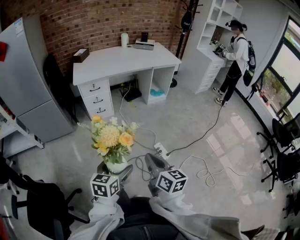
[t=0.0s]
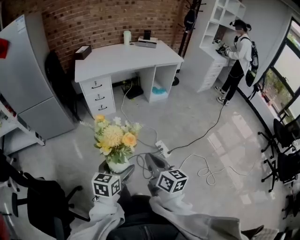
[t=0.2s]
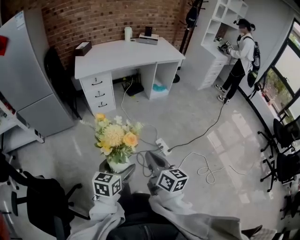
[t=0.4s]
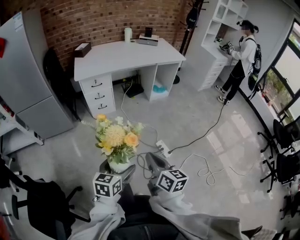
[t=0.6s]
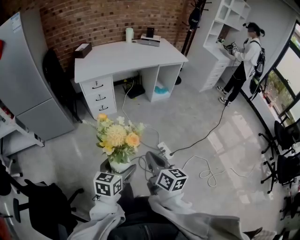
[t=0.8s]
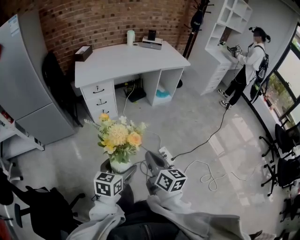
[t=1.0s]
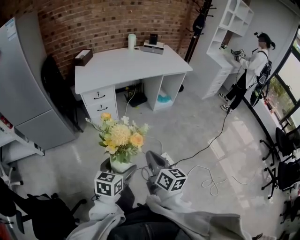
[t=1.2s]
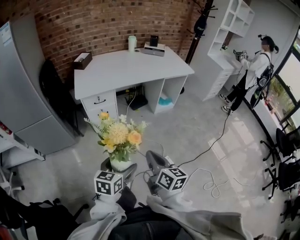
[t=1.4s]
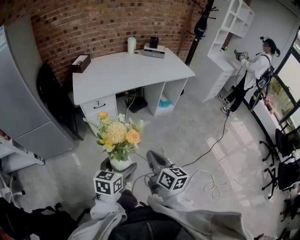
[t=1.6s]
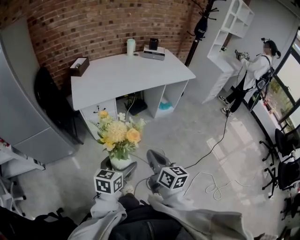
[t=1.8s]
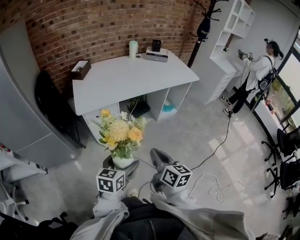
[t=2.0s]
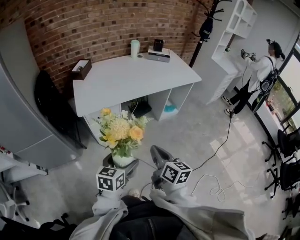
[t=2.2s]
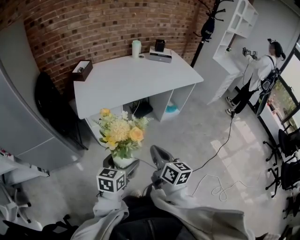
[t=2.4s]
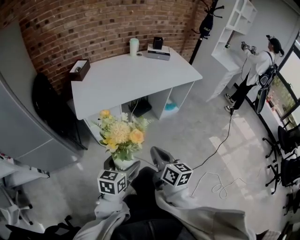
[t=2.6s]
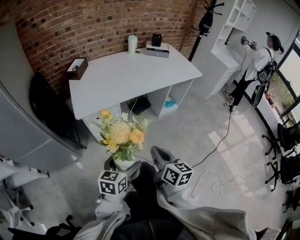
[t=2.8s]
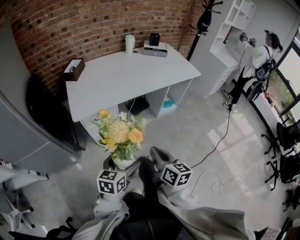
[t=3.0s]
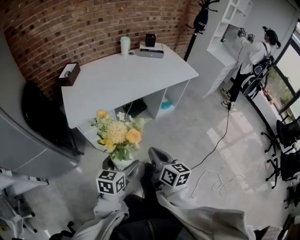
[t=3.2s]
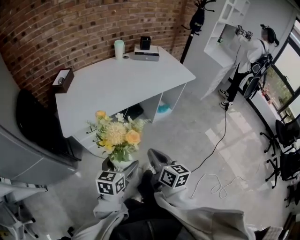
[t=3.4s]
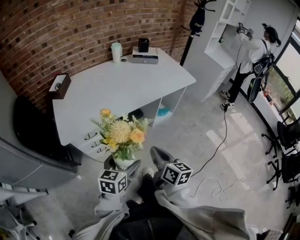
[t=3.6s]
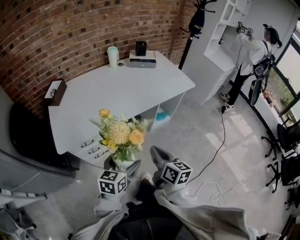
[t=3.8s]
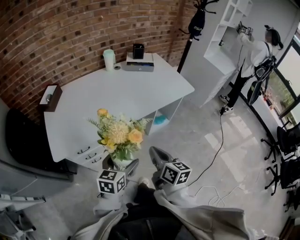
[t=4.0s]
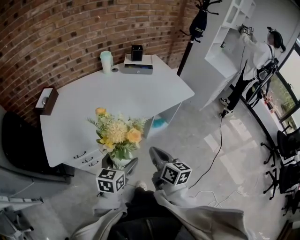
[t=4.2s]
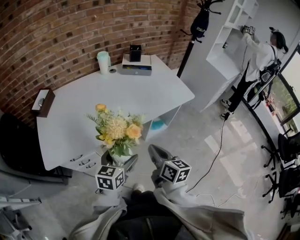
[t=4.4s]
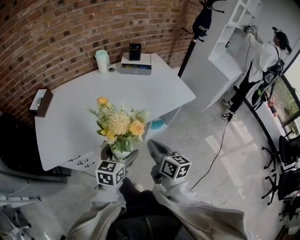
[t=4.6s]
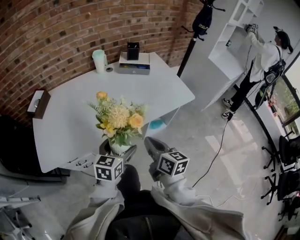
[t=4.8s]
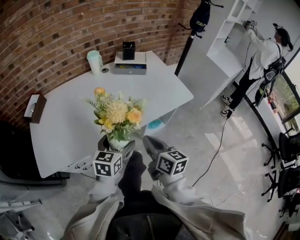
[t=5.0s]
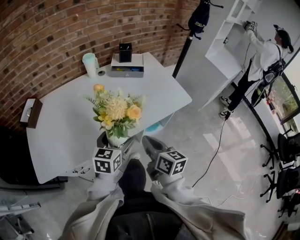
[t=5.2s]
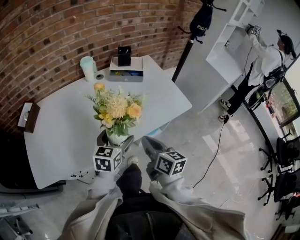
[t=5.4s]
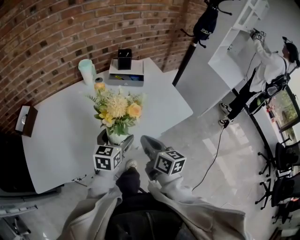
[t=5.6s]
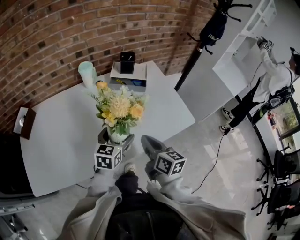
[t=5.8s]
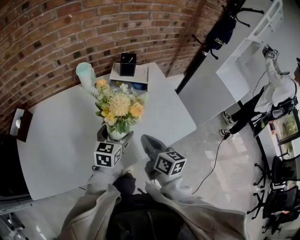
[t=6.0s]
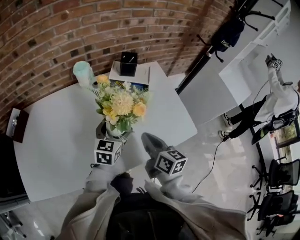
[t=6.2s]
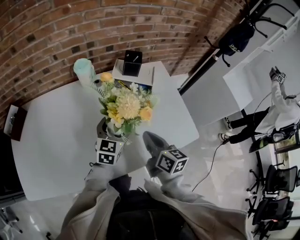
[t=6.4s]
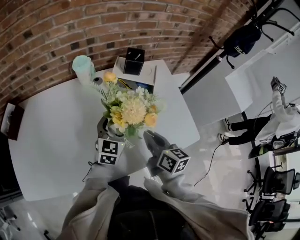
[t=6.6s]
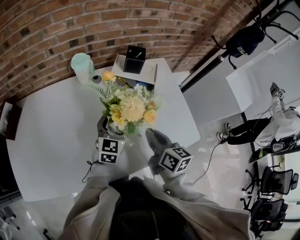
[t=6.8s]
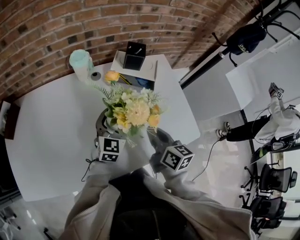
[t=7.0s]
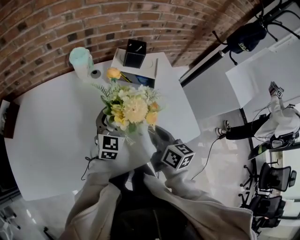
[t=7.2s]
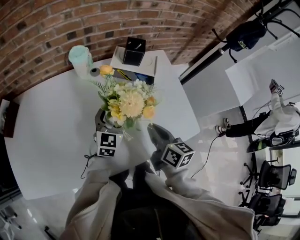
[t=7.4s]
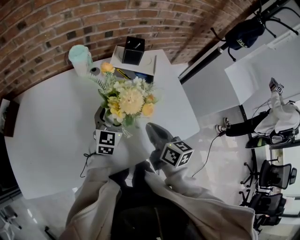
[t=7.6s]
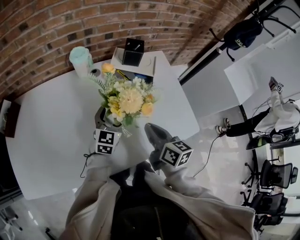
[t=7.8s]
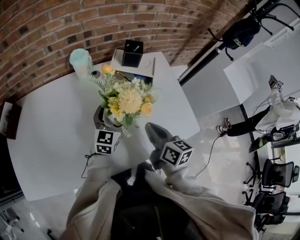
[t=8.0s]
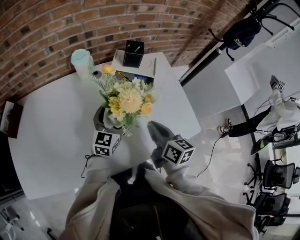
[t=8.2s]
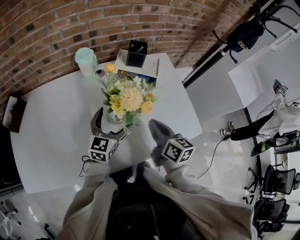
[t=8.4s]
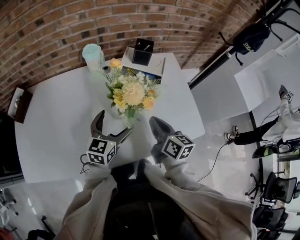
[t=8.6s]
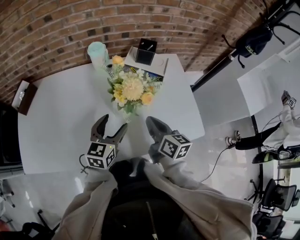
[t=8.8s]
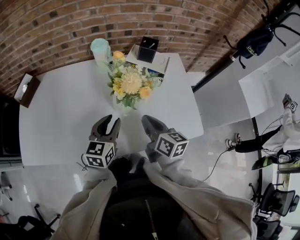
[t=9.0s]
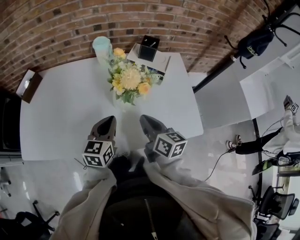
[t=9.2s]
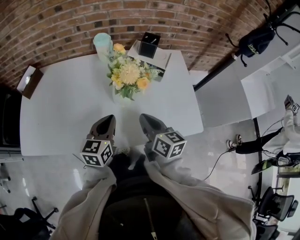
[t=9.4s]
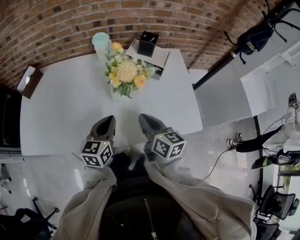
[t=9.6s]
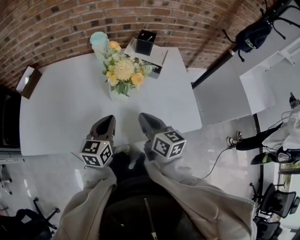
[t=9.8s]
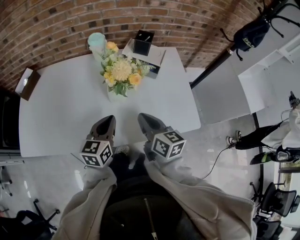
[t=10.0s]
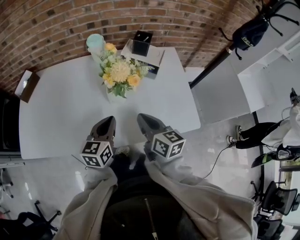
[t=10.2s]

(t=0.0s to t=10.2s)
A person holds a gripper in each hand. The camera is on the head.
t=0.0s - t=1.4s: The left gripper is displaced forward by about 25 cm, while the right gripper shifts roughly 25 cm forward and to the left.
t=1.4s - t=3.0s: The two grippers go some 25 cm forward and to the left.
t=3.0s - t=4.4s: The two grippers travel together, forward, approximately 40 cm.
t=4.4s - t=5.8s: The grippers both shift forward by approximately 30 cm.
t=5.8s - t=7.2s: Both grippers move forward, roughly 15 cm.
t=7.2s - t=8.8s: The left gripper shifts some 10 cm backward and upward.
t=8.8s - t=10.2s: The two grippers go about 5 cm backward. The left gripper closes.

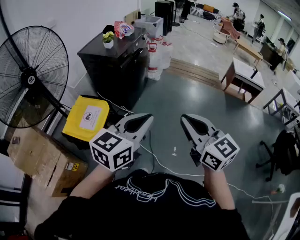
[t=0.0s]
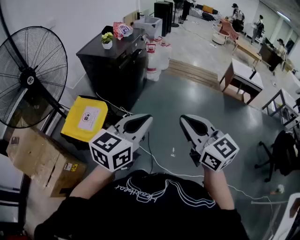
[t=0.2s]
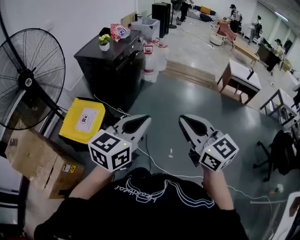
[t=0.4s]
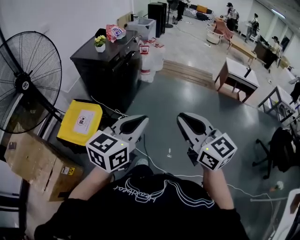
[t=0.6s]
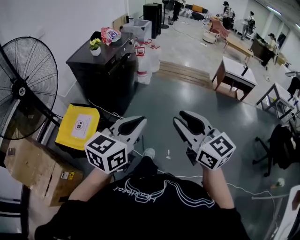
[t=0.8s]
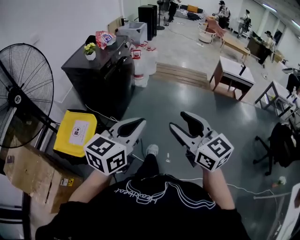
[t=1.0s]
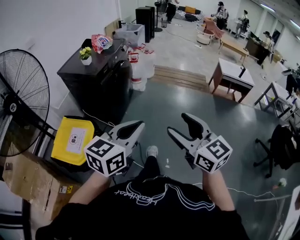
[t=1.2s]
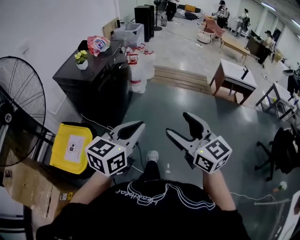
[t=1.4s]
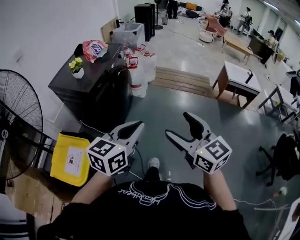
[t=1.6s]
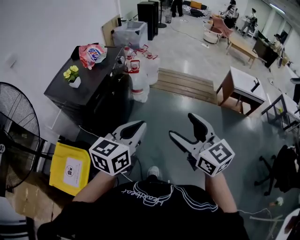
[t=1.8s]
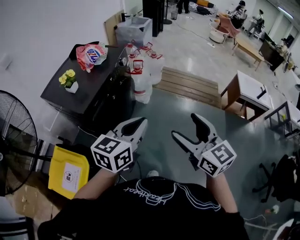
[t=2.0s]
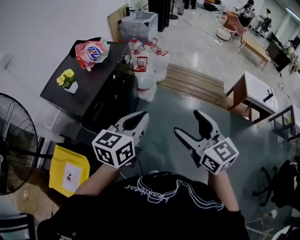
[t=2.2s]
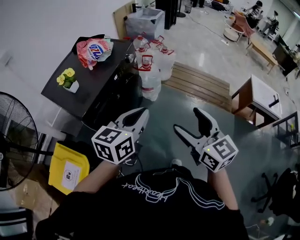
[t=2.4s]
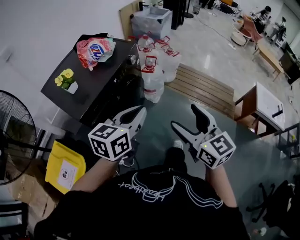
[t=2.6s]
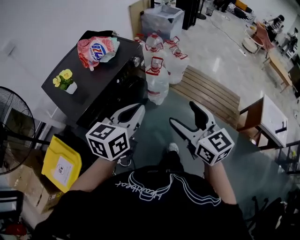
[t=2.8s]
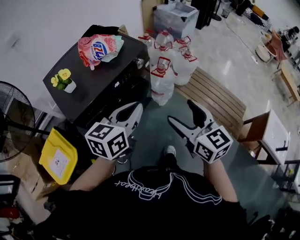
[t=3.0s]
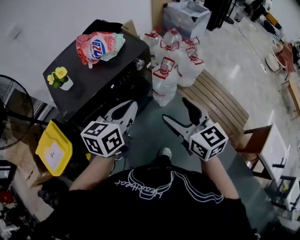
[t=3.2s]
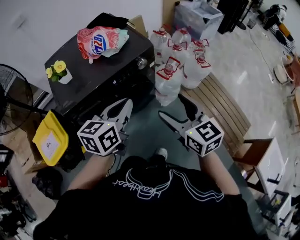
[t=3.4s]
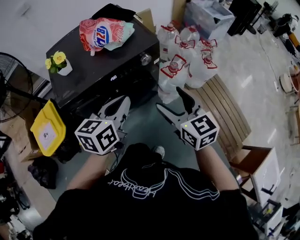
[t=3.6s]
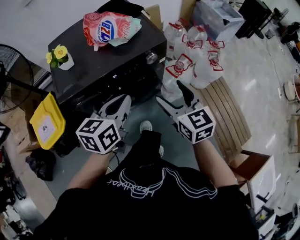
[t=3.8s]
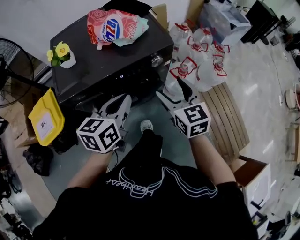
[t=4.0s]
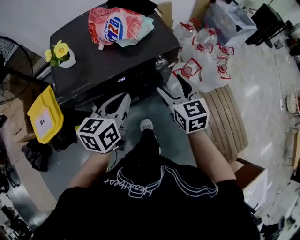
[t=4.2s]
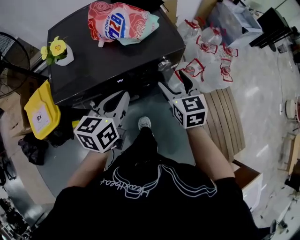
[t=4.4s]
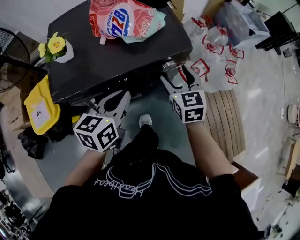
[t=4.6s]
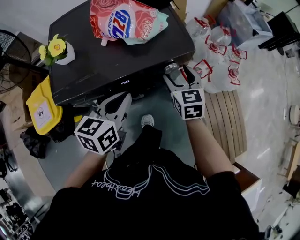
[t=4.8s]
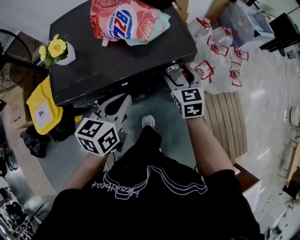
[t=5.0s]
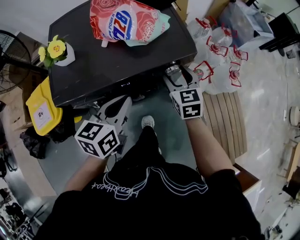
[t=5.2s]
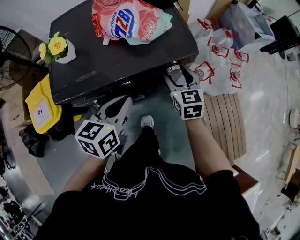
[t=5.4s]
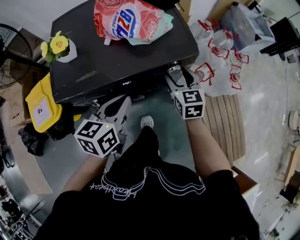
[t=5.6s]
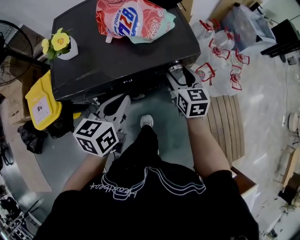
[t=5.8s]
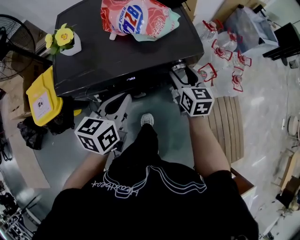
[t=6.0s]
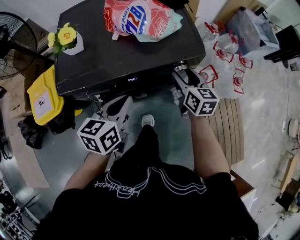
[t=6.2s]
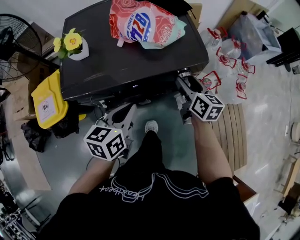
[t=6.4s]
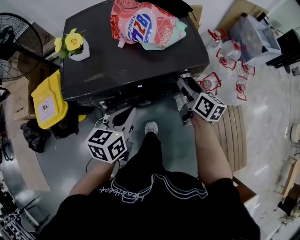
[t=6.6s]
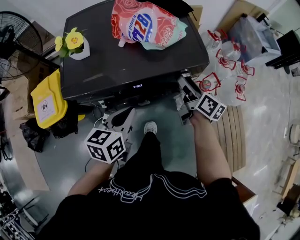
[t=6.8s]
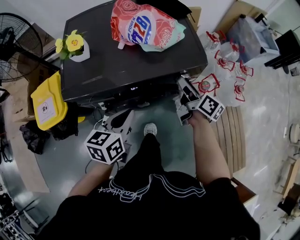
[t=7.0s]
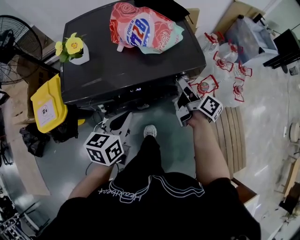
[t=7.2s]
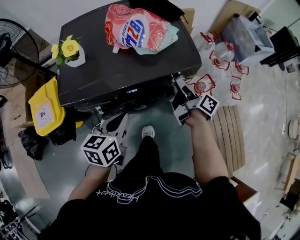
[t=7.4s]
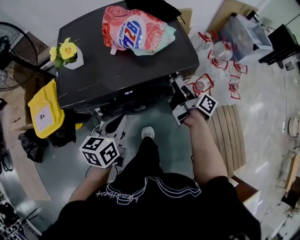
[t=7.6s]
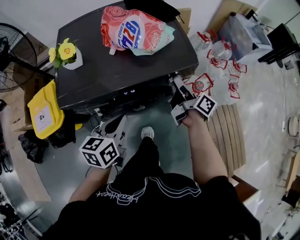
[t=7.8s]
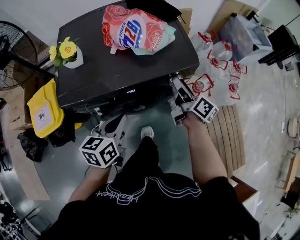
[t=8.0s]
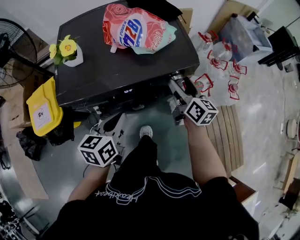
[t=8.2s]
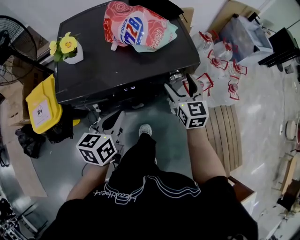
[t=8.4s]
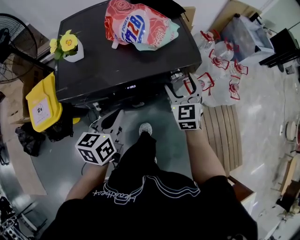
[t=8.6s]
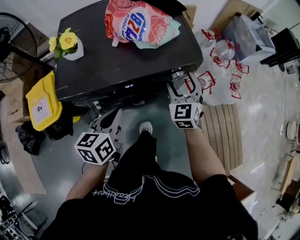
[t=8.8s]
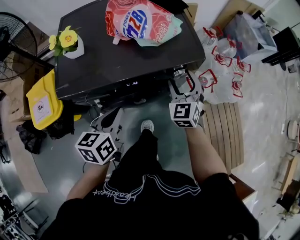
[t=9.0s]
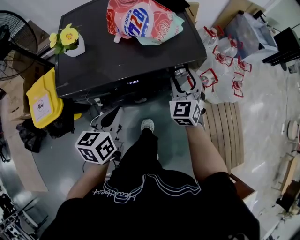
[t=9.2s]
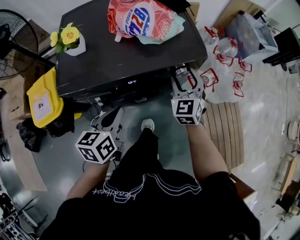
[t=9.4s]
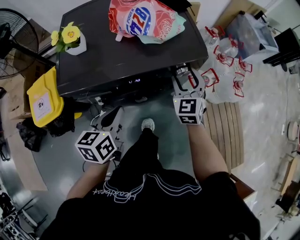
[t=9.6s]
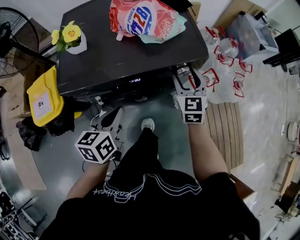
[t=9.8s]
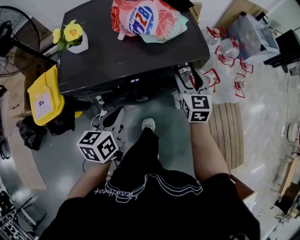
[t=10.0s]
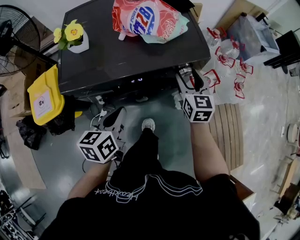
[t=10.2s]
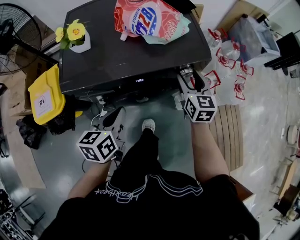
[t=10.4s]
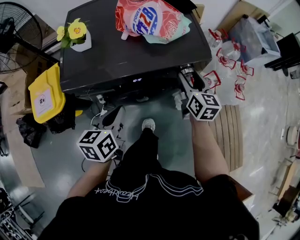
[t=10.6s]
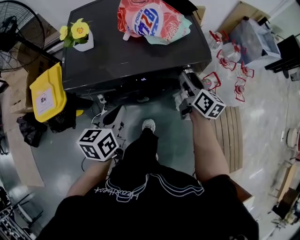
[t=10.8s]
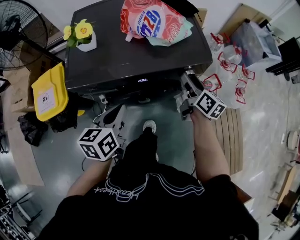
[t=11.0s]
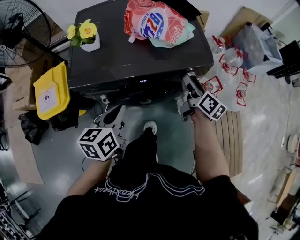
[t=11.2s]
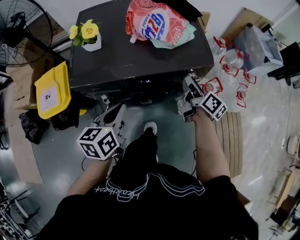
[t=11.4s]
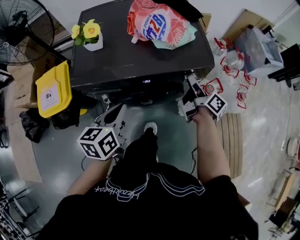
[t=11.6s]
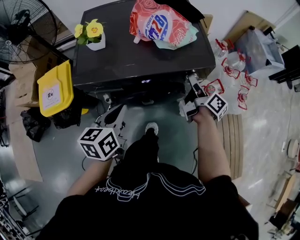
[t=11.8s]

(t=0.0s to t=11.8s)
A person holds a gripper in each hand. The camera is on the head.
t=0.0s - t=1.4s: Both grippers move forward, roughly 15 cm. The right gripper opens its fingers.
t=1.4s - t=3.0s: The two grippers travel together, approximately 60 cm. The right gripper swivels some 20 degrees, while the left gripper turns by roughly 30 degrees.
t=3.0s - t=4.4s: The left gripper moves about 20 cm, and swivels approximately 40 degrees. The right gripper shifts by some 35 cm, and turns by about 30 degrees.
t=4.4s - t=6.0s: The right gripper travels forward and downward by roughly 10 cm.
t=6.0s - t=7.4s: The right gripper twists roughly 60 degrees clockwise, seen from behind.
t=7.4s - t=8.8s: The right gripper rolls counterclockwise, seen from behind, by roughly 100 degrees.
t=8.8s - t=10.4s: The right gripper turns by roughly 30 degrees.
t=10.4s - t=11.8s: The right gripper twists some 60 degrees clockwise, seen from behind.

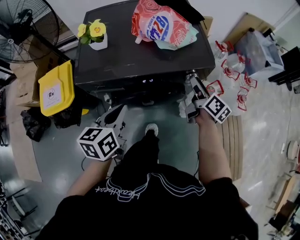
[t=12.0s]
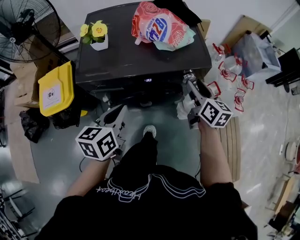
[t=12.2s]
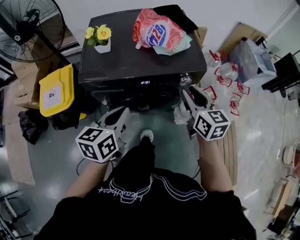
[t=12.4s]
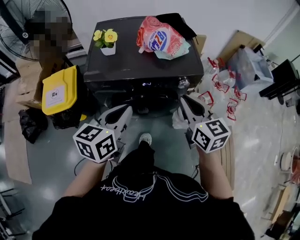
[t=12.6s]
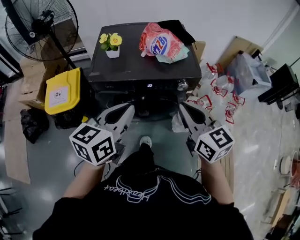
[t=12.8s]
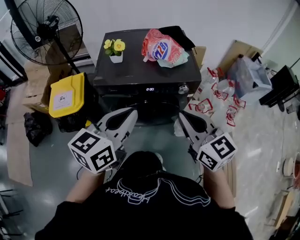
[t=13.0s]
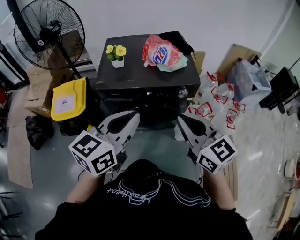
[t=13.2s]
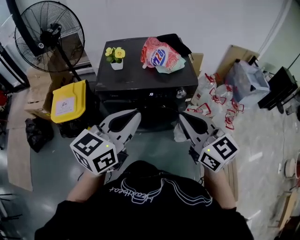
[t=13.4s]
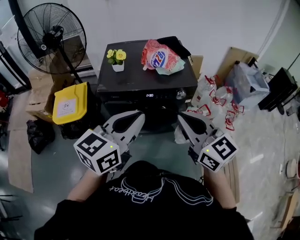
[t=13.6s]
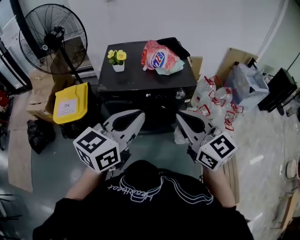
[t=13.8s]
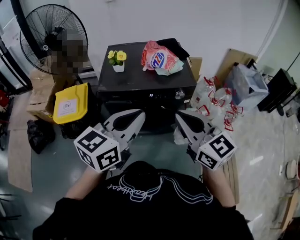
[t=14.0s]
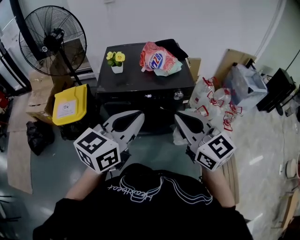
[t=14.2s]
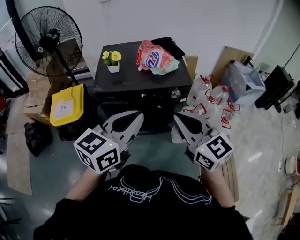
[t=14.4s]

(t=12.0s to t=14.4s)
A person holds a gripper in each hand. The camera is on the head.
t=12.0s - t=13.2s: The left gripper is displaced upward and backward by some 25 cm, and rotates approximately 30 degrees. The right gripper shifts about 35 cm upward, backward and to the left, rolls counterclockwise, seen from behind, by some 50 degrees, and closes its fingers.
t=13.2s - t=14.4s: The grippers stay close to where they were, moving slightly.
